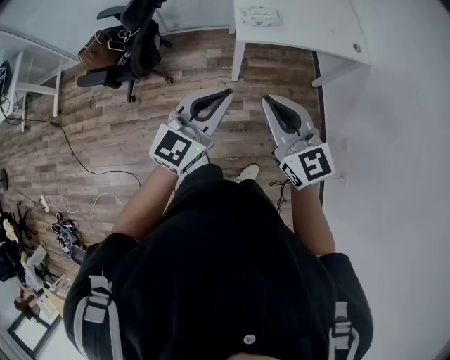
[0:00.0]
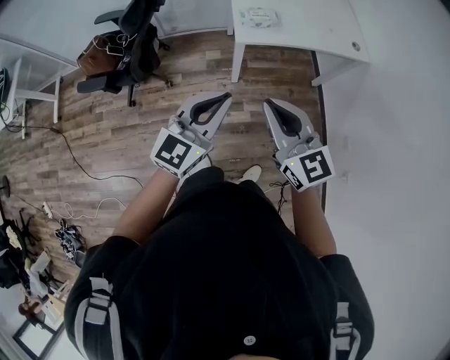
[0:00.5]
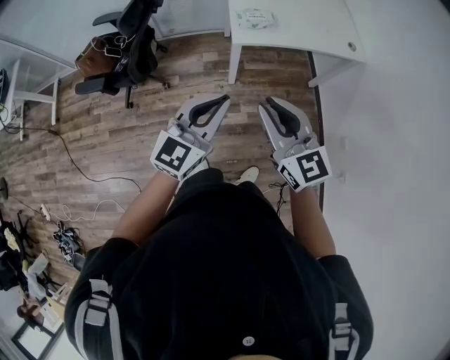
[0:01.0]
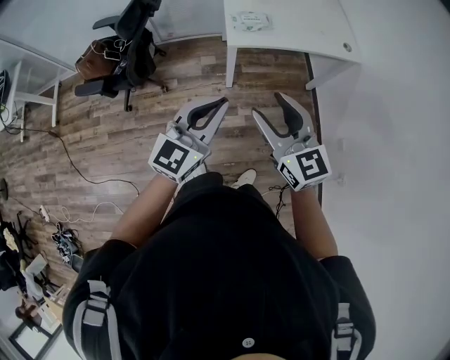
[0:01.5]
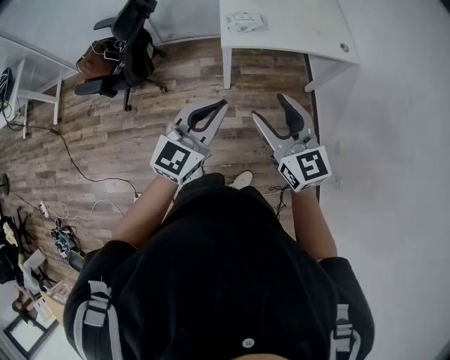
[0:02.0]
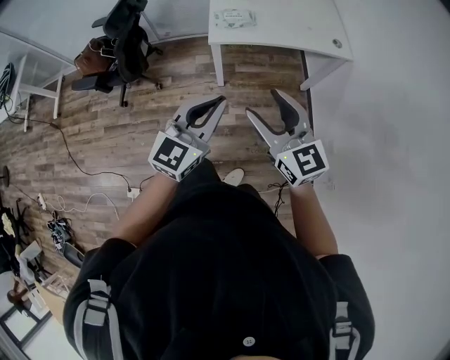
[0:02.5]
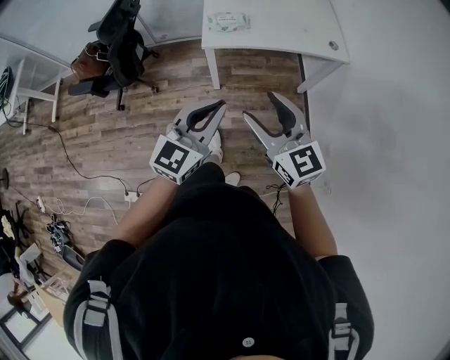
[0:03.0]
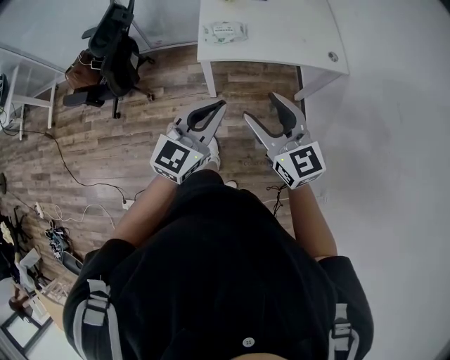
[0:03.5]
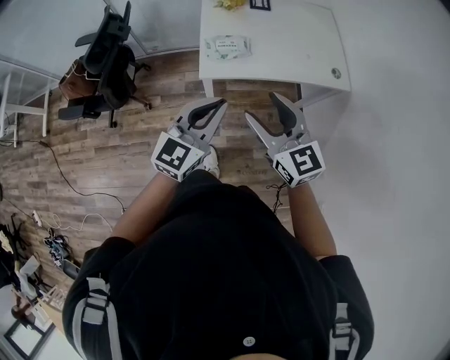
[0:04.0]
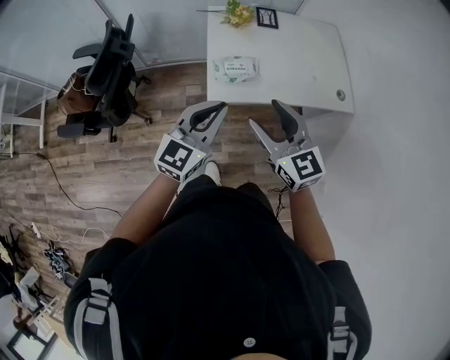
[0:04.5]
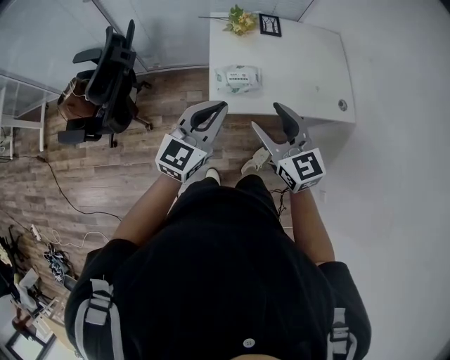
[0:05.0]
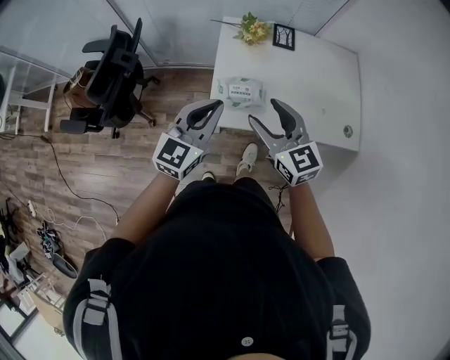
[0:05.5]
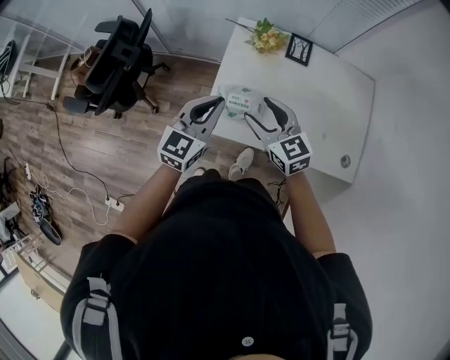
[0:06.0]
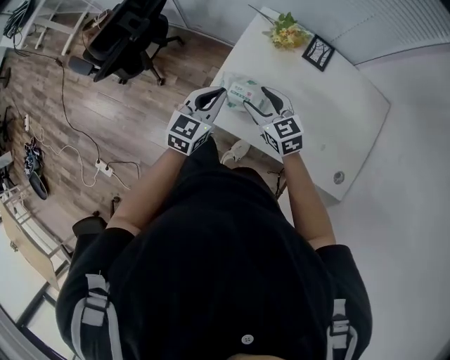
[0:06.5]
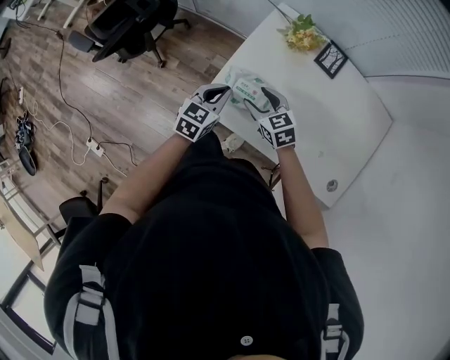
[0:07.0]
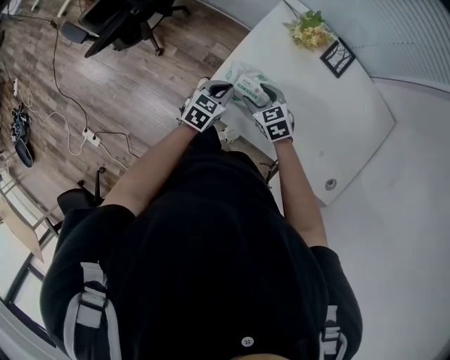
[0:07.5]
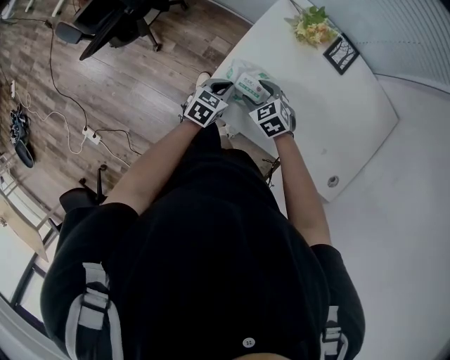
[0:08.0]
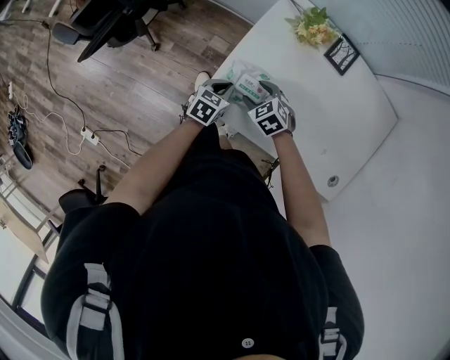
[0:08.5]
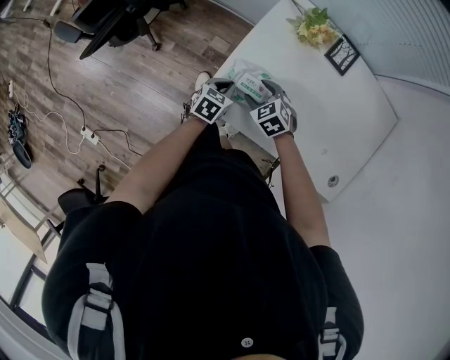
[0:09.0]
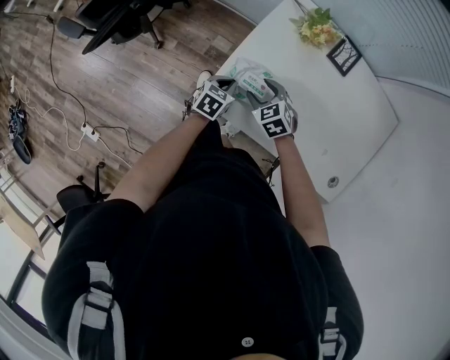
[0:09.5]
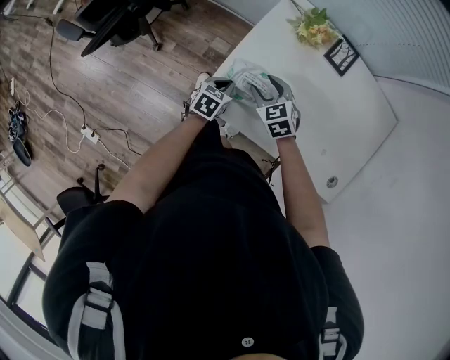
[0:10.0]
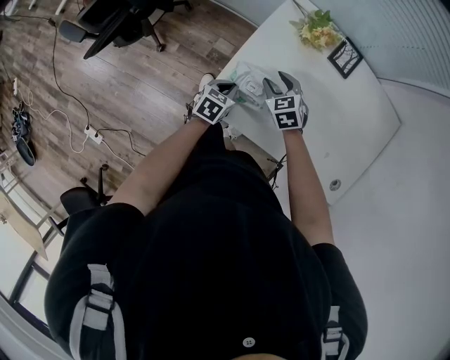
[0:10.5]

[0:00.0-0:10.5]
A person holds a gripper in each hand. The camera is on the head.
0:00.0 to 0:02.0: Both grippers move to the right, roughly 10 cm. The right gripper opens its fingers.
0:02.0 to 0:04.0: Both grippers move forward, some 20 cm.
0:04.0 to 0:06.5: The right gripper moves some 40 cm, and swivels approximately 40 degrees. The left gripper ends up approximately 40 cm from where it was, and swivels roughly 40 degrees.
0:06.5 to 0:08.5: Both grippers travel together downward, roughly 20 cm. The left gripper turns by roughly 30 degrees. Meanwhile the right gripper points its fingers some 30 degrees further downward.
0:08.5 to 0:10.5: The right gripper goes approximately 5 cm forward.

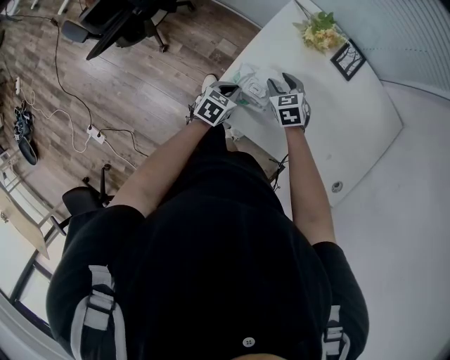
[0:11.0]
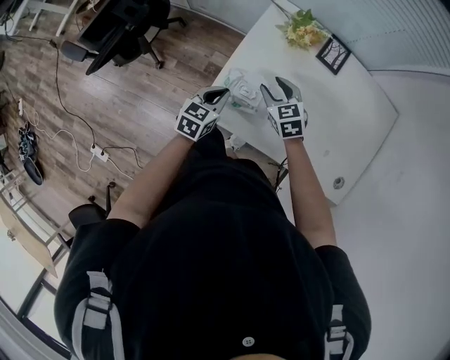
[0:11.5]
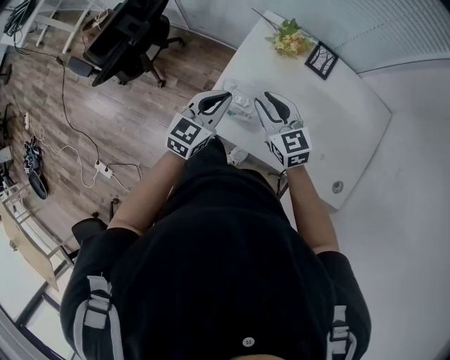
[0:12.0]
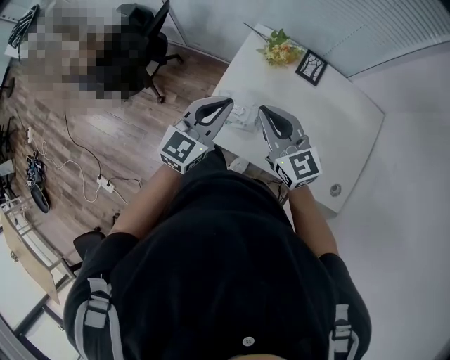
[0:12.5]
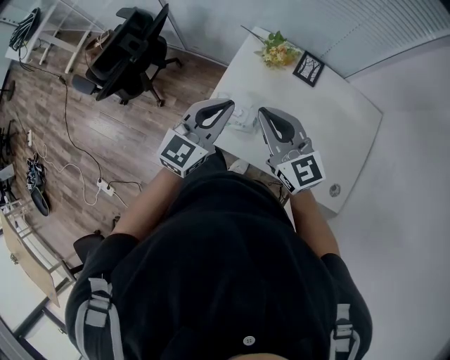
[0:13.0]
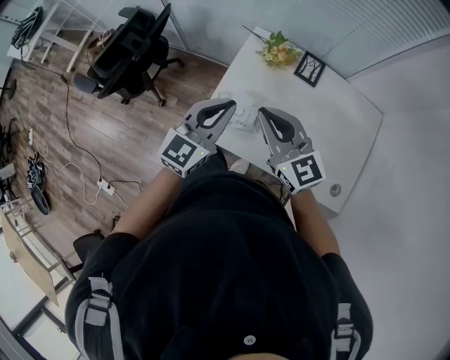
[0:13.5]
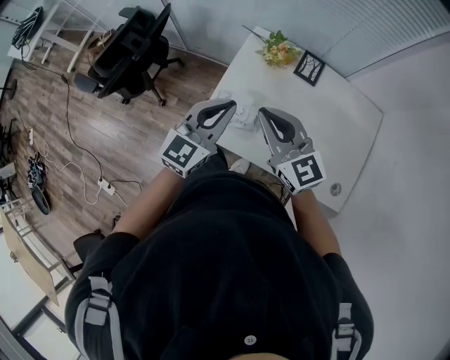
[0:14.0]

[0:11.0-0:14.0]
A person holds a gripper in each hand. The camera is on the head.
0:11.0 to 0:12.5: The grippers both shift upward by some 30 cm. The right gripper tips its fingers upward by approximately 40 degrees, and closes up; the left gripper tips its fingers upward by about 40 degrees.
0:12.5 to 0:14.0: The grippers stay close to where they were, moving slightly.

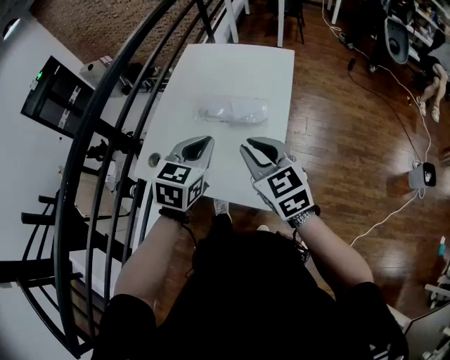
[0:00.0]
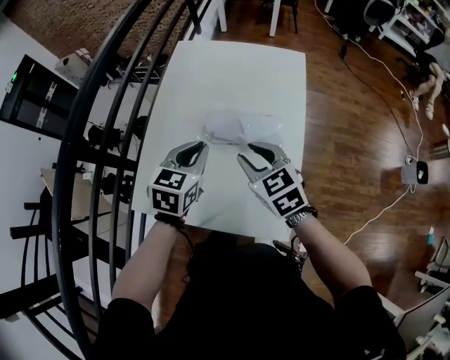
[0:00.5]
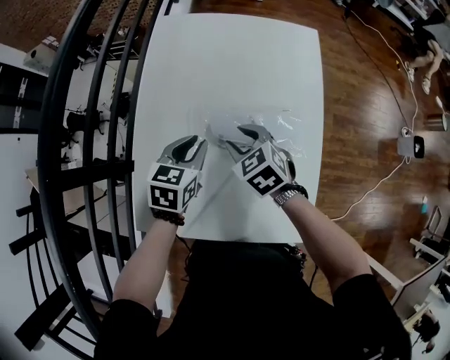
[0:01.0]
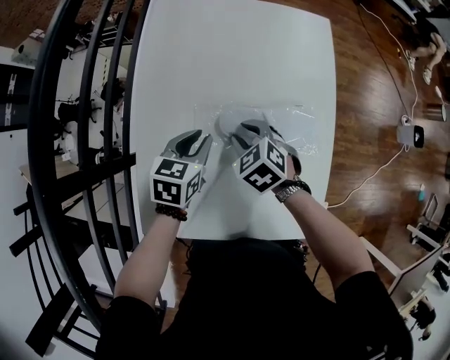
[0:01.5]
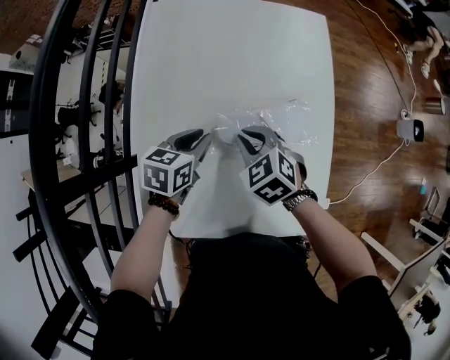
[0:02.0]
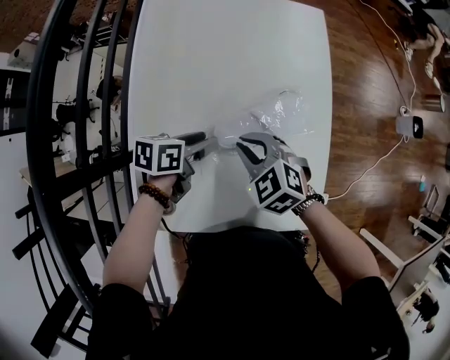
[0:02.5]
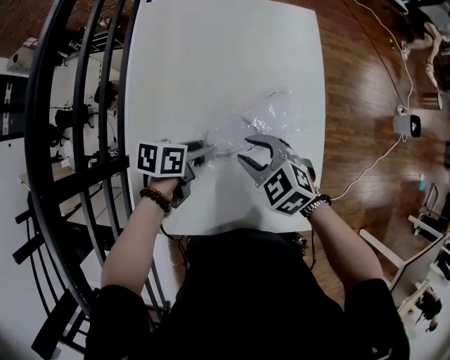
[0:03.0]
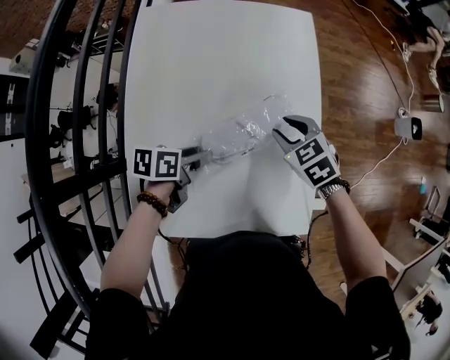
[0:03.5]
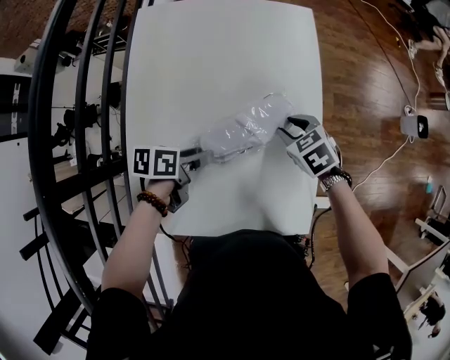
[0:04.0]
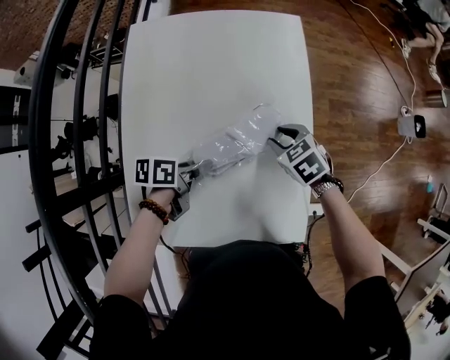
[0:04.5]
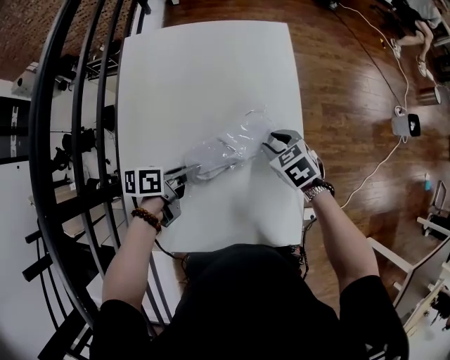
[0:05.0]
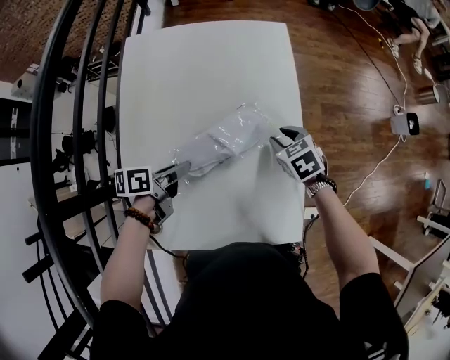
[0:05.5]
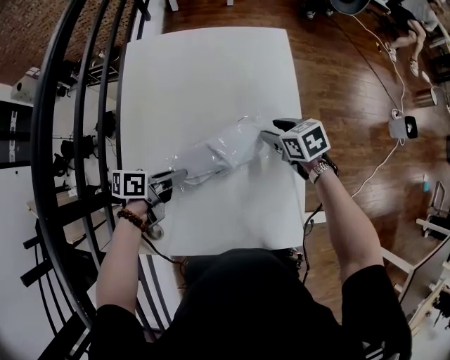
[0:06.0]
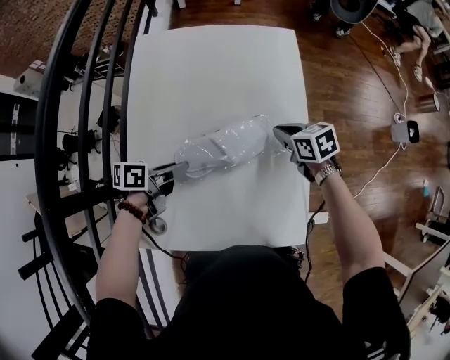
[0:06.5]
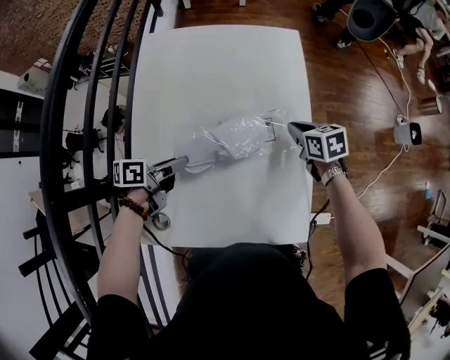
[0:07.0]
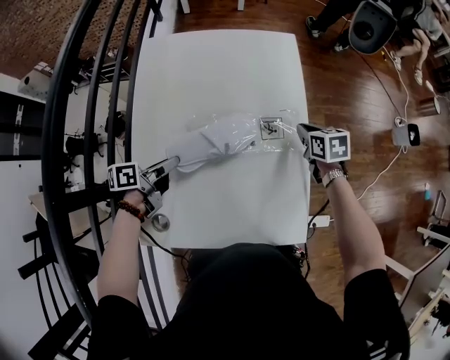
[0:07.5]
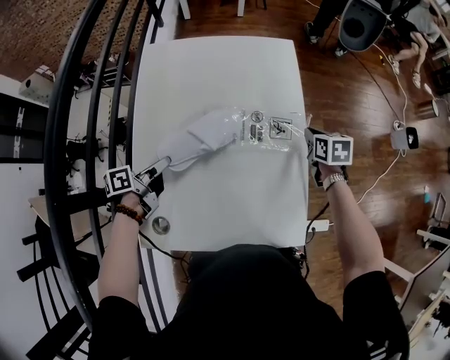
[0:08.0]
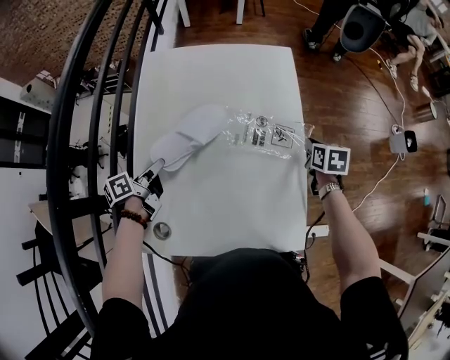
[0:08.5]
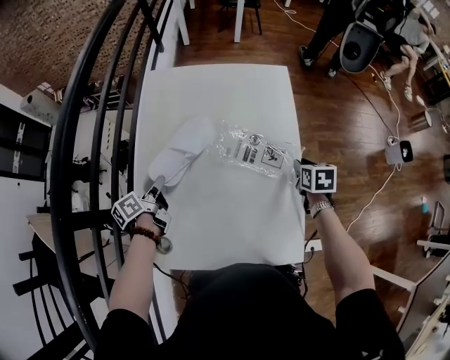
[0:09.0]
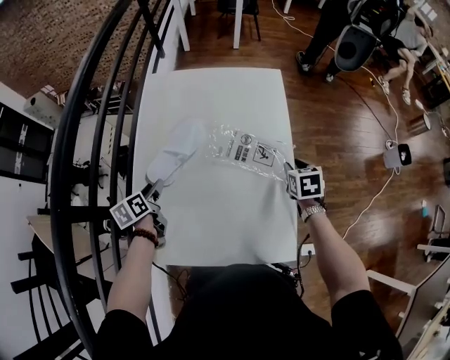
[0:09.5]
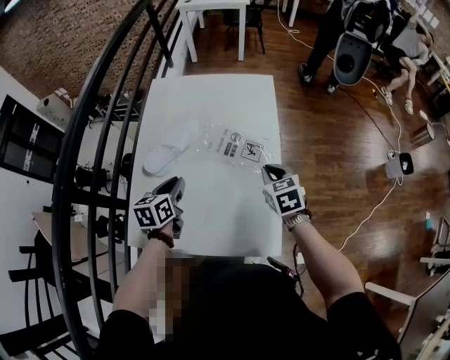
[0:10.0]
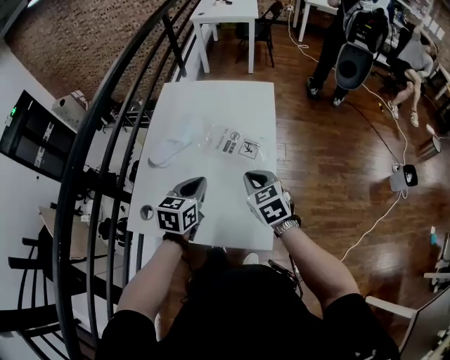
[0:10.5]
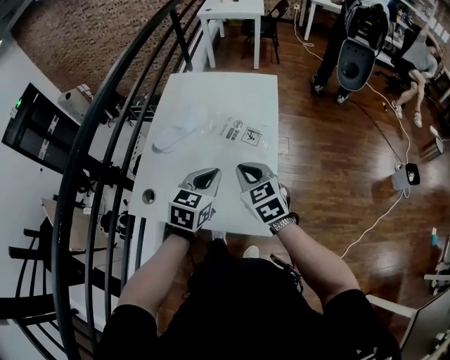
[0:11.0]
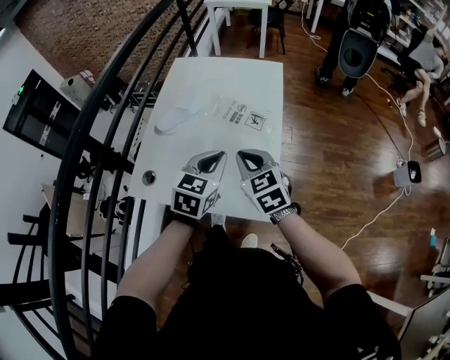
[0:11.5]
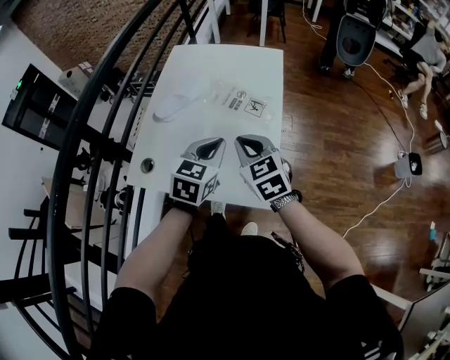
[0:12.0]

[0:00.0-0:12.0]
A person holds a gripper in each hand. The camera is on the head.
0:00.0 to 0:02.0: Both grippers move forward, downward and to the left, approximately 30 cm. The left gripper swivels approximately 40 degrees; the right gripper points its fingers some 40 degrees further downward, and opens and closes again.
0:02.0 to 0:04.0: The left gripper moves about 5 cm, changes its angle by roughly 30 degrees, and opens. The right gripper shifts some 15 cm to the right, and opens.
0:04.0 to 0:06.0: The left gripper closes up, while the right gripper shifts about 5 cm forward, and rotates some 20 degrees.
0:06.0 to 0:08.0: The left gripper moves to the left, roughly 10 cm, and rotates some 20 degrees. The right gripper heads to the right, covering about 10 cm, rotates roughly 30 degrees, and closes.
0:08.0 to 0:10.0: The right gripper heads backward, upward and to the left, covering roughly 15 cm, rotates roughly 30 degrees, and opens and closes again. Meanwhile the left gripper moves to the right and upward, roughly 10 cm, rotates some 50 degrees, and opens and closes again.
0:10.0 to 0:12.0: The left gripper goes approximately 20 cm to the right, backward and upward, rotates approximately 30 degrees, and closes its fingers. Meanwhile the right gripper goes some 15 cm backward, to the left and upward, and changes its angle by about 20 degrees.

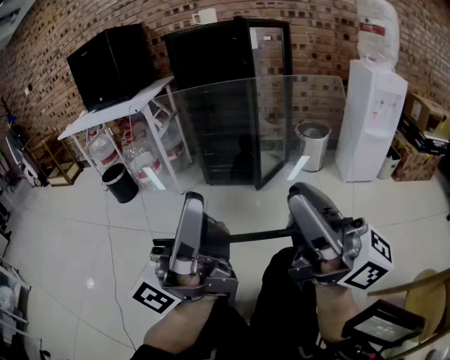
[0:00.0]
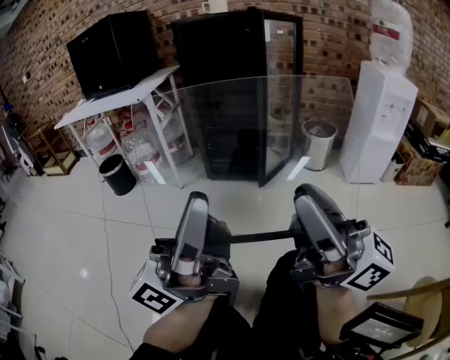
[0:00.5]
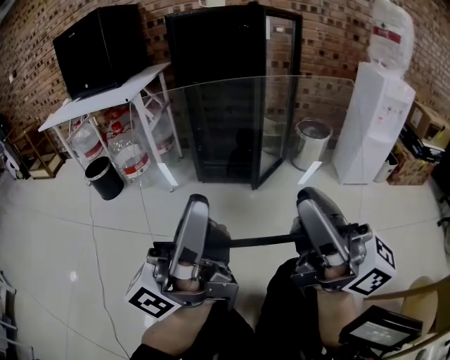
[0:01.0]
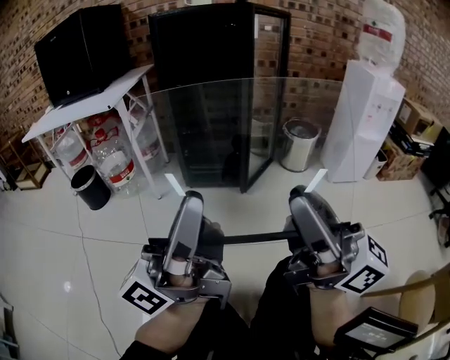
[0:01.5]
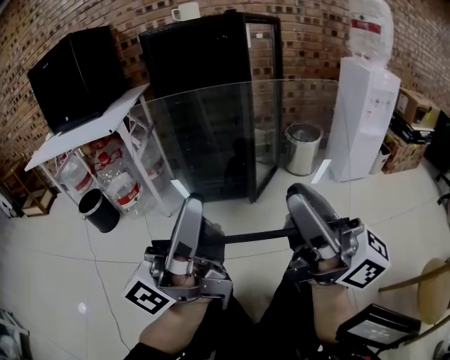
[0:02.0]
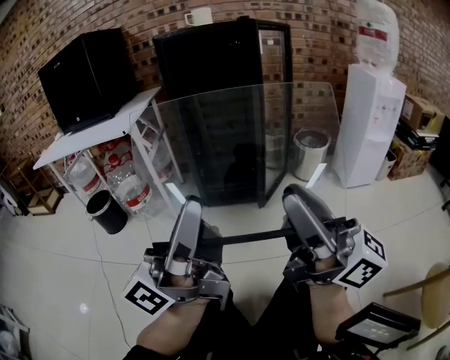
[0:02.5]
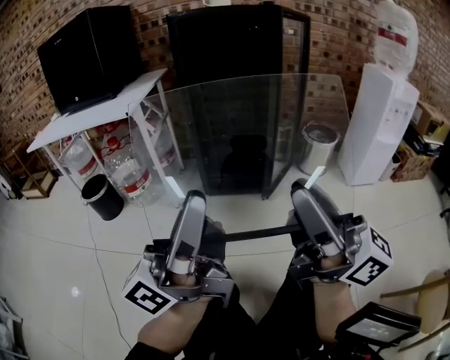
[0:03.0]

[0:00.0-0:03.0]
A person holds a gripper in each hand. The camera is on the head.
0:00.0 to 0:01.5: The grippers both shift forward by approximately 15 cm.
0:01.5 to 0:03.0: Both grippers move to the left and forward, about 10 cm.
